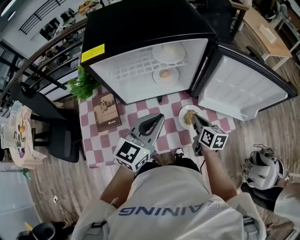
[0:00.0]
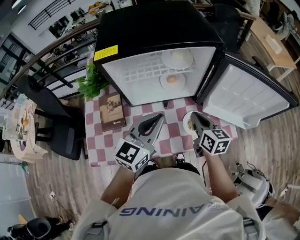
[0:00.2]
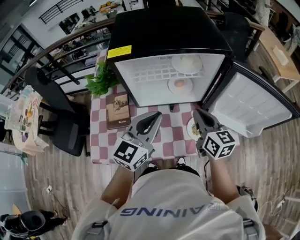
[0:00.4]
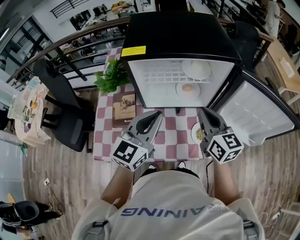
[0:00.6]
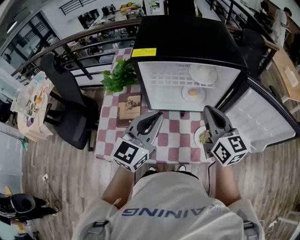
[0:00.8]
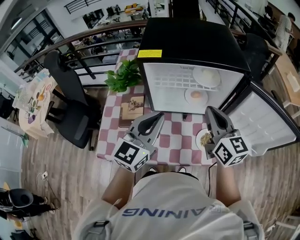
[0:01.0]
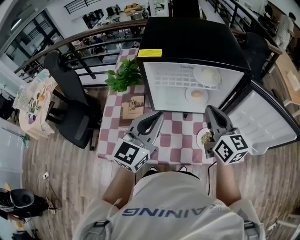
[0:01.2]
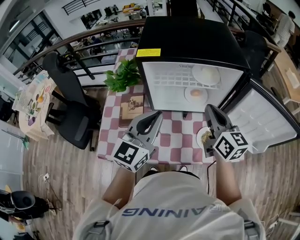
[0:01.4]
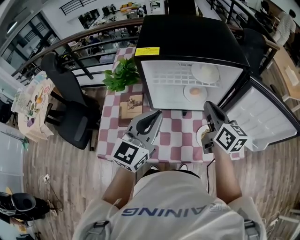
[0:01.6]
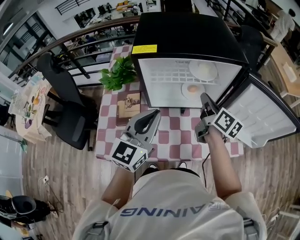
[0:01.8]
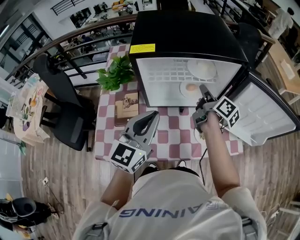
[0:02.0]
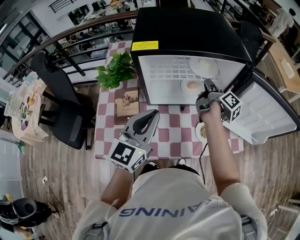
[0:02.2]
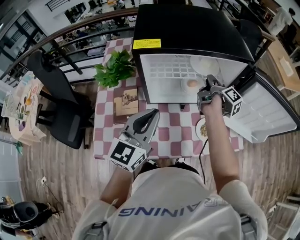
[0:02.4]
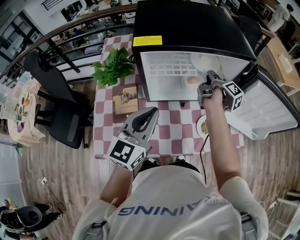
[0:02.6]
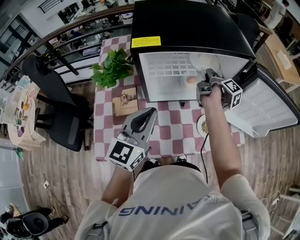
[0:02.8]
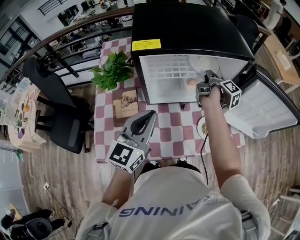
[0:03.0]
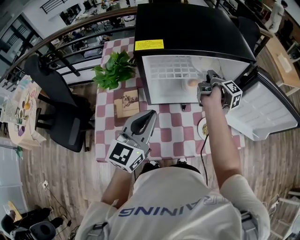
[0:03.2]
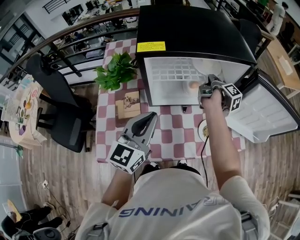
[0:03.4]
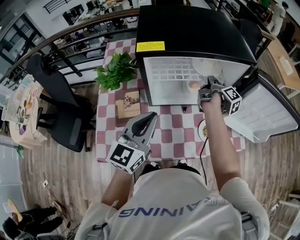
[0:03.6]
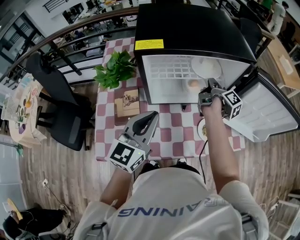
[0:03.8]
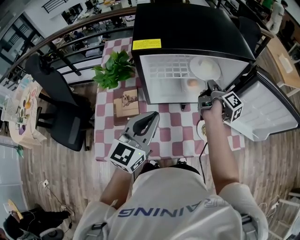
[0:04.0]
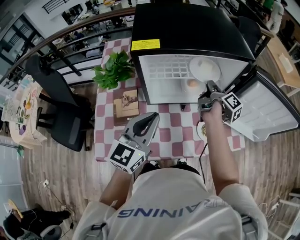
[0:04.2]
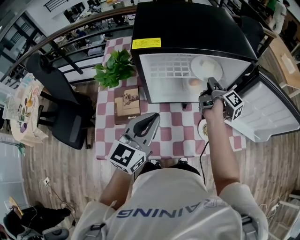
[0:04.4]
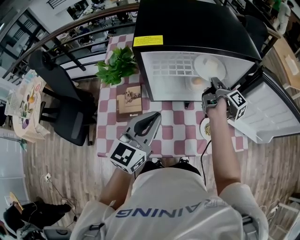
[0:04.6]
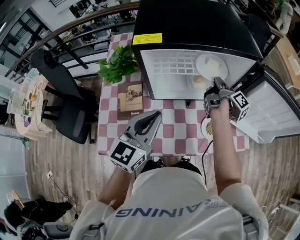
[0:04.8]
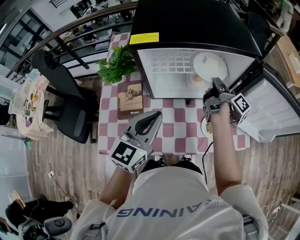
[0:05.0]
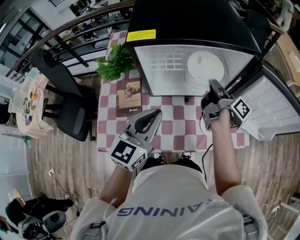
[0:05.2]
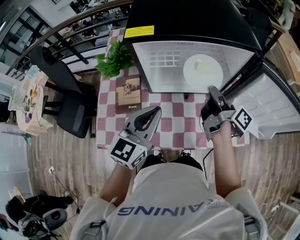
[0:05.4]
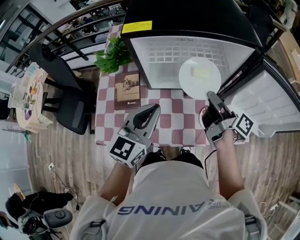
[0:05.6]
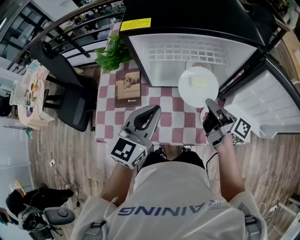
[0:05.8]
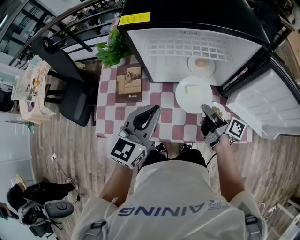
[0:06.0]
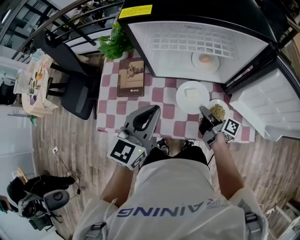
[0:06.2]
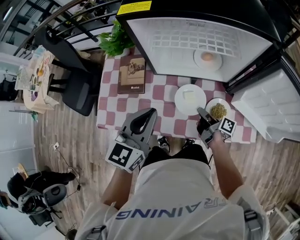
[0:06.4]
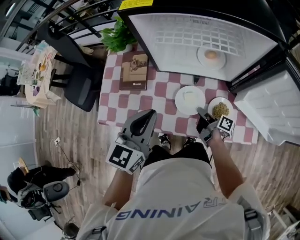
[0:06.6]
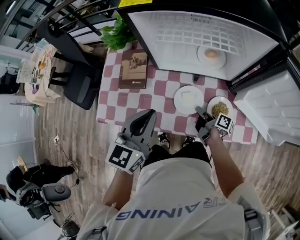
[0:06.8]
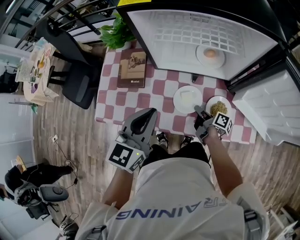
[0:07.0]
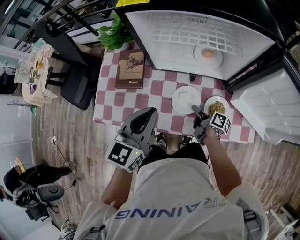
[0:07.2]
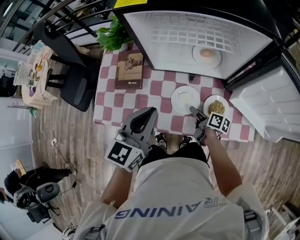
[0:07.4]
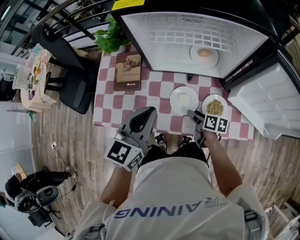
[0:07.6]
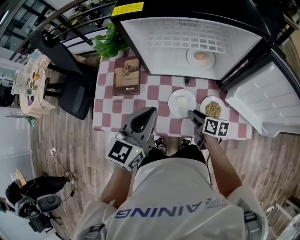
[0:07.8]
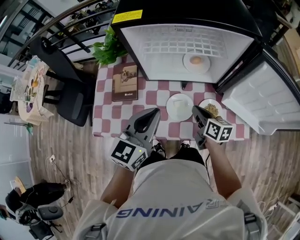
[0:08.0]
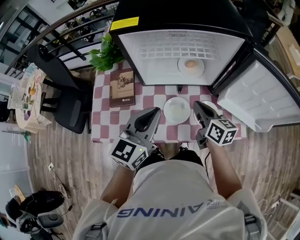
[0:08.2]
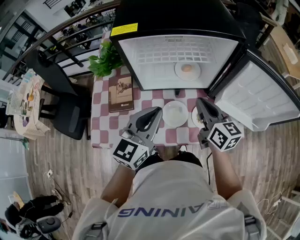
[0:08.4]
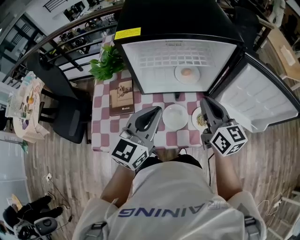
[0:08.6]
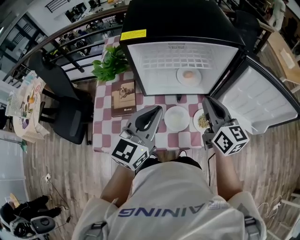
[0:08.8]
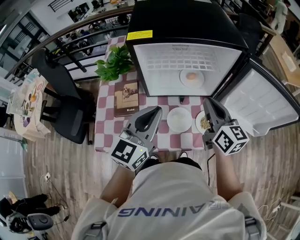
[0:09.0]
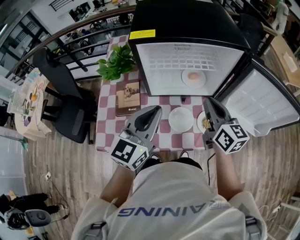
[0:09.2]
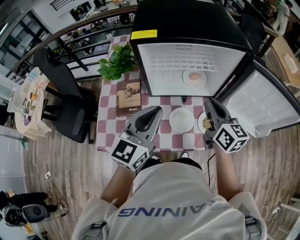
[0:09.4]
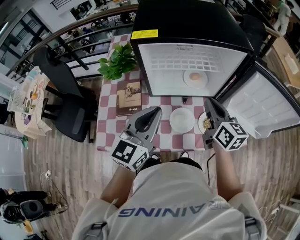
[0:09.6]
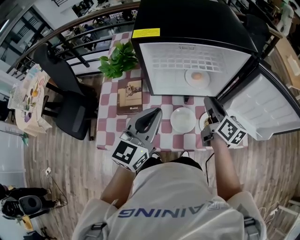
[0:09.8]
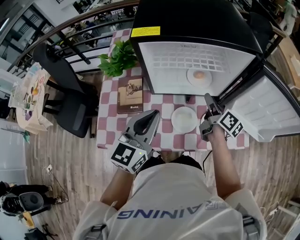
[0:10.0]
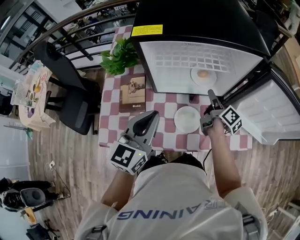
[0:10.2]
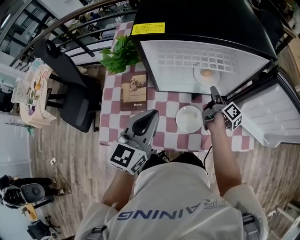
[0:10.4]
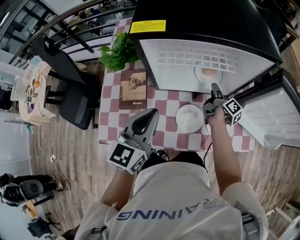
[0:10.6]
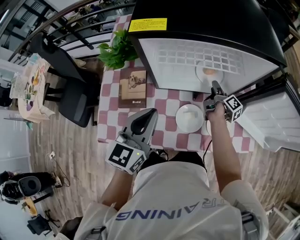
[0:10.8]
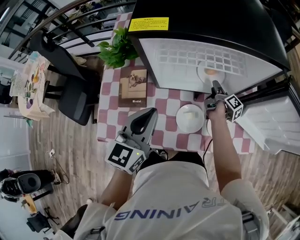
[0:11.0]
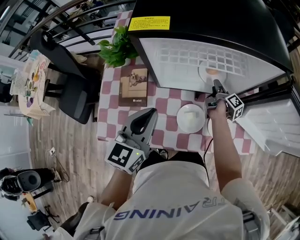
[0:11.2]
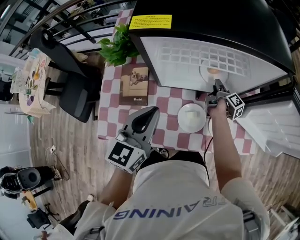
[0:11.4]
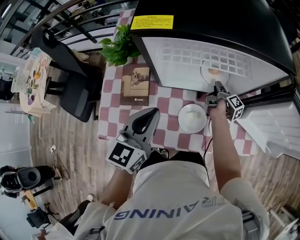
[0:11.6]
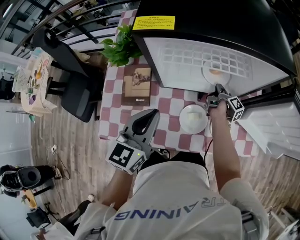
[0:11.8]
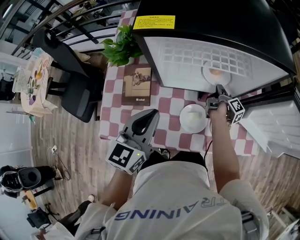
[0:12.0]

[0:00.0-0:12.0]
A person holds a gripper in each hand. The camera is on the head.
0:00.0 to 0:01.6: The right gripper shifts some 20 cm upward and to the left, and rotates roughly 30 degrees, while the left gripper travels to the left and upward by approximately 15 cm, and turns by about 20 degrees.
0:01.6 to 0:03.0: The left gripper moves about 5 cm. The right gripper goes about 20 cm forward and downward, and rolls clockwise, seen from behind, by about 60 degrees.
0:03.0 to 0:04.4: The grippers make only small movements.
0:04.4 to 0:06.0: The right gripper is displaced backward and downward by approximately 20 cm, and rotates some 40 degrees.
0:06.0 to 0:07.6: The right gripper is displaced downward by some 15 cm, turns by roughly 40 degrees, and opens.
0:07.6 to 0:09.0: The right gripper is displaced upward by some 30 cm, swivels about 50 degrees, and closes. Meanwhile the left gripper travels upward by approximately 10 cm.
0:09.0 to 0:10.4: The right gripper shifts roughly 25 cm downward and forward, twists approximately 60 degrees clockwise, seen from behind, and opens up; the left gripper shifts by approximately 5 cm.
0:10.4 to 0:12.0: The right gripper moves downward, roughly 10 cm, and closes.

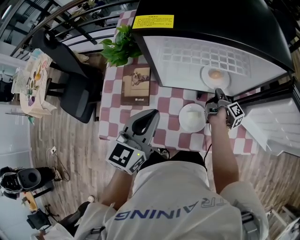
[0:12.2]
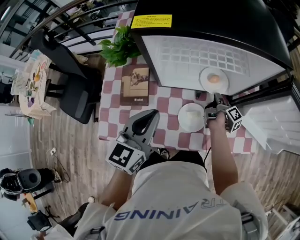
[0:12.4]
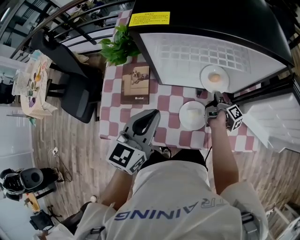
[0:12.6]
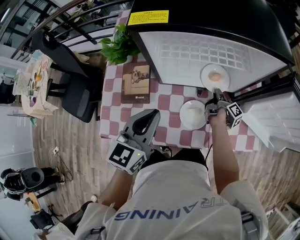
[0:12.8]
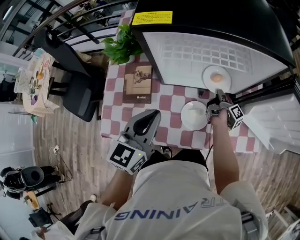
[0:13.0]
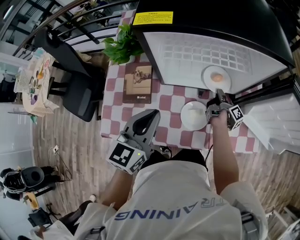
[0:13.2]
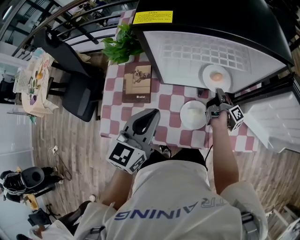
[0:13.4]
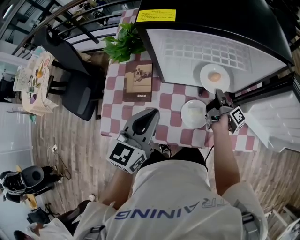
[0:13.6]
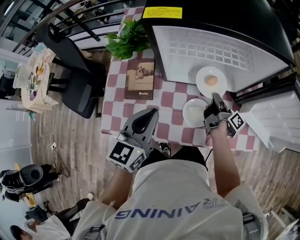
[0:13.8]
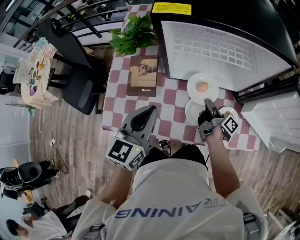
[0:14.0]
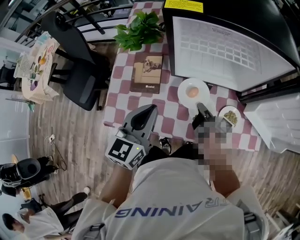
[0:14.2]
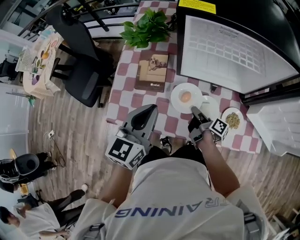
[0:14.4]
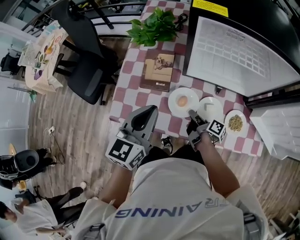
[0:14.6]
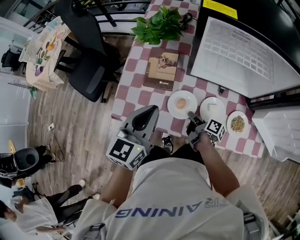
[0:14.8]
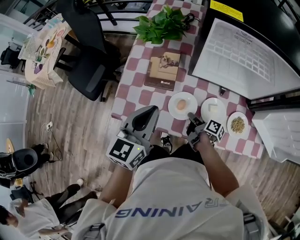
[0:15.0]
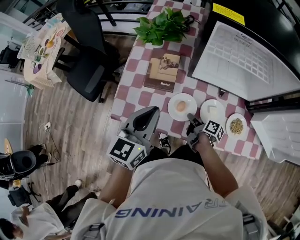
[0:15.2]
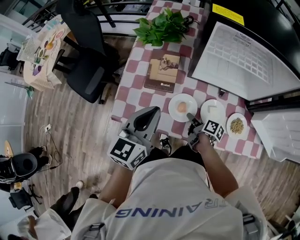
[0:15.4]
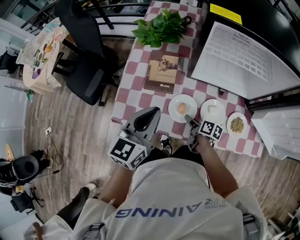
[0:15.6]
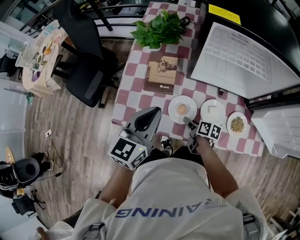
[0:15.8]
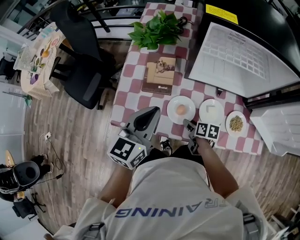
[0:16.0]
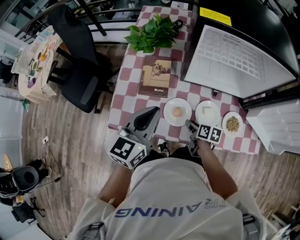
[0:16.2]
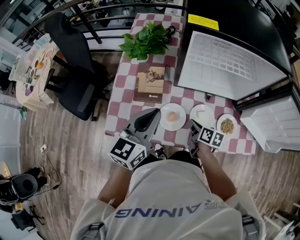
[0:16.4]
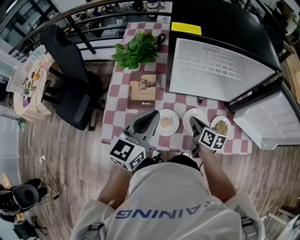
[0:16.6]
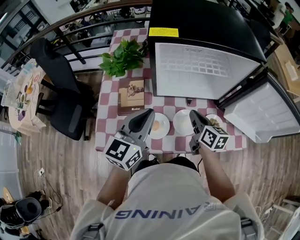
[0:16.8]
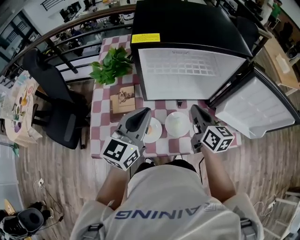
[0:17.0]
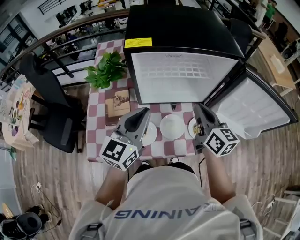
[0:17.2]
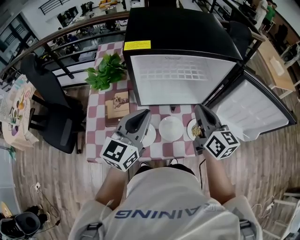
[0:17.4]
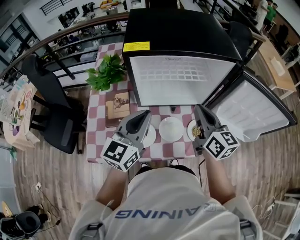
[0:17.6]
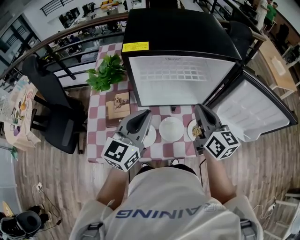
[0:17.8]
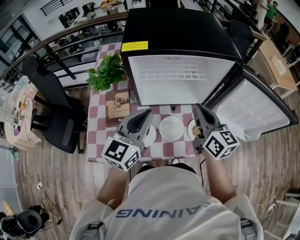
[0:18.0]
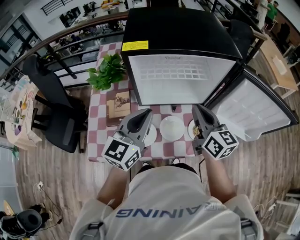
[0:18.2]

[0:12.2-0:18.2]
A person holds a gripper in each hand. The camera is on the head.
0:12.2 to 0:13.8: The right gripper heads backward, covering roughly 5 cm.
0:13.8 to 0:15.2: The right gripper goes roughly 25 cm to the left, backward and downward, and turns by some 40 degrees, while the left gripper moves to the left, about 10 cm.
0:15.2 to 0:16.6: The left gripper shifts roughly 5 cm to the right; the right gripper shifts about 15 cm upward and to the right, swivels roughly 40 degrees, and opens and closes again.
0:16.6 to 0:18.2: The left gripper is displaced to the right by approximately 10 cm. Meanwhile the right gripper goes roughly 25 cm upward and to the right, and turns by approximately 30 degrees.

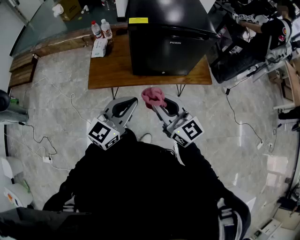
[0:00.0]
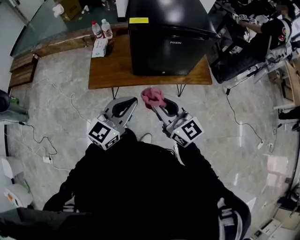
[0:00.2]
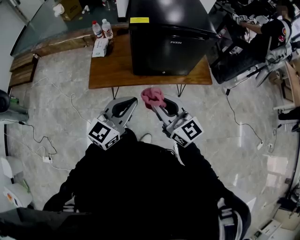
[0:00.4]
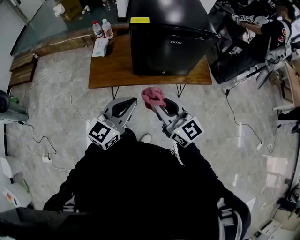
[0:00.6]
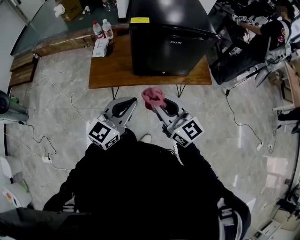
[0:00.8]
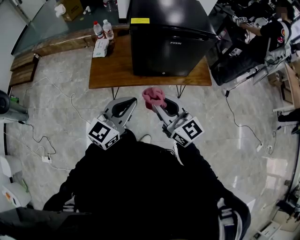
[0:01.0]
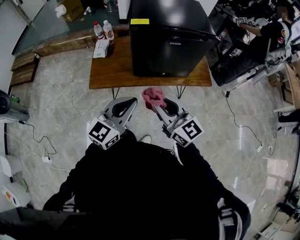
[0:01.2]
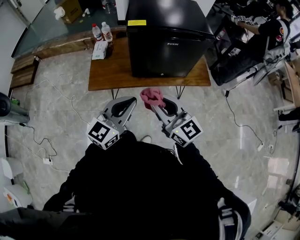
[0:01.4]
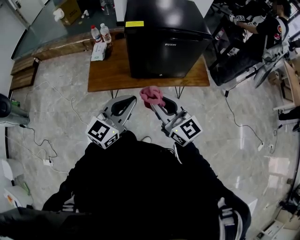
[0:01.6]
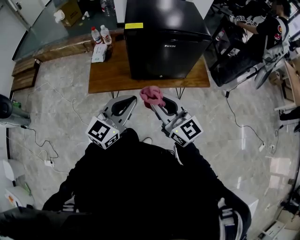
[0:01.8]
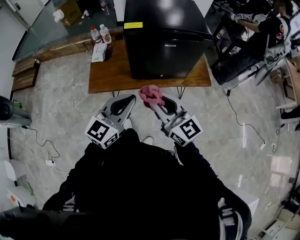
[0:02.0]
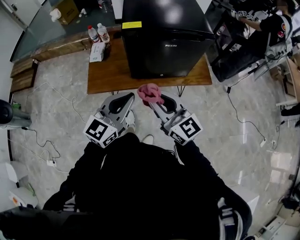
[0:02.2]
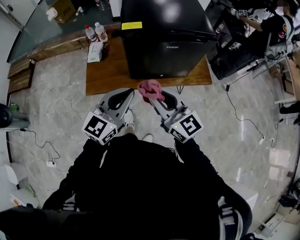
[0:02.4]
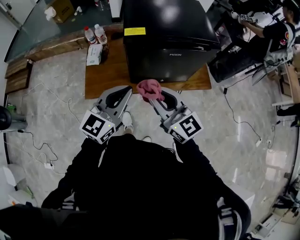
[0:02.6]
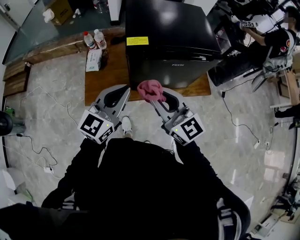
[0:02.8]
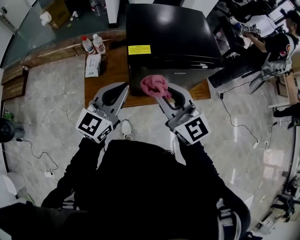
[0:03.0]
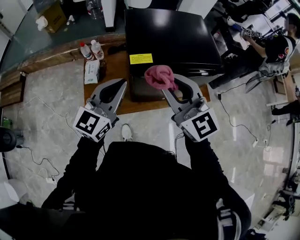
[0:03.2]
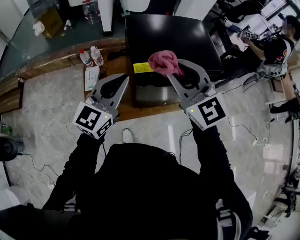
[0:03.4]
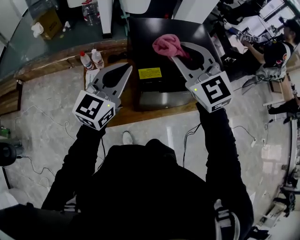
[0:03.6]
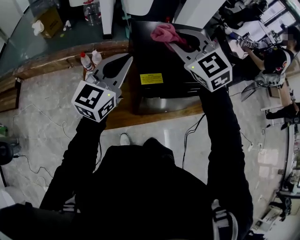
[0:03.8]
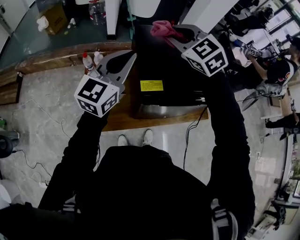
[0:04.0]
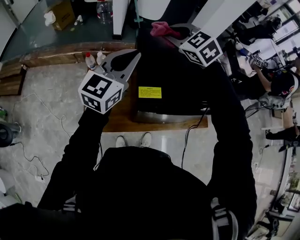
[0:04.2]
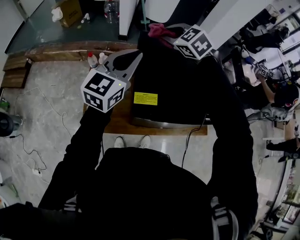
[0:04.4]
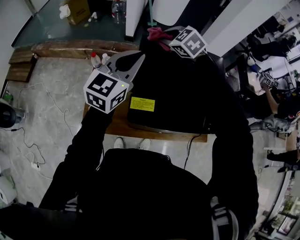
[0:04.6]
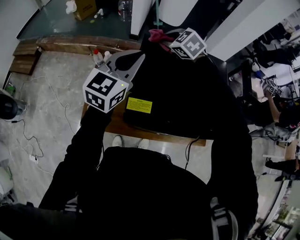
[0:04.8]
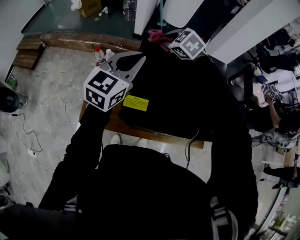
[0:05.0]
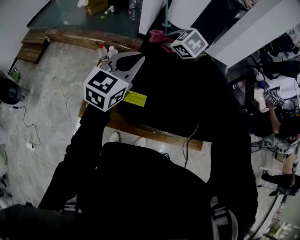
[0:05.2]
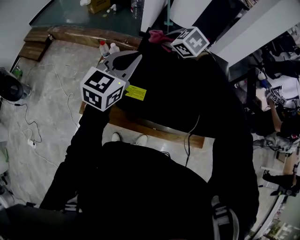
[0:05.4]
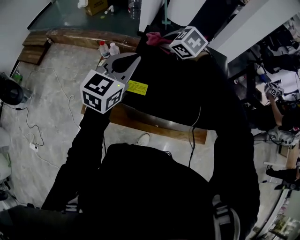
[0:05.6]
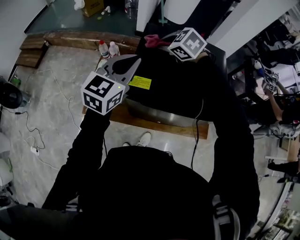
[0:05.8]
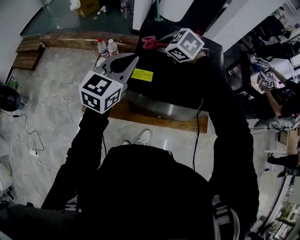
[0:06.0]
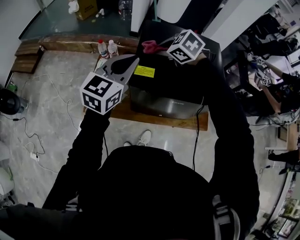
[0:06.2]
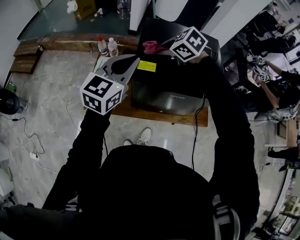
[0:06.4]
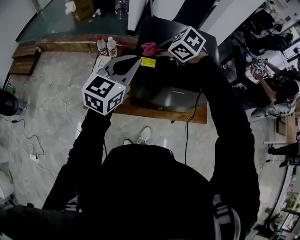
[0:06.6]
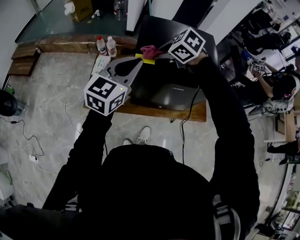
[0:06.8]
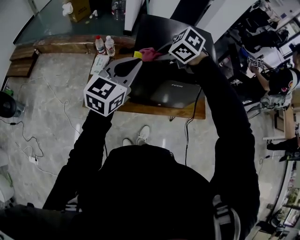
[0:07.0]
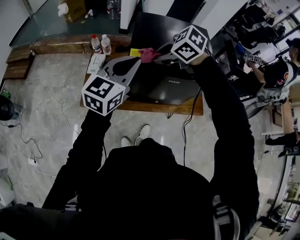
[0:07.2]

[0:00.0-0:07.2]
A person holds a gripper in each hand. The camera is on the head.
0:00.0 to 0:01.4: The grippers make only small movements.
0:01.4 to 0:02.8: The grippers both shift forward by about 15 cm.
0:02.8 to 0:04.4: Both grippers move forward, some 40 cm. The right gripper angles its fingers downward, by approximately 40 degrees.
0:04.4 to 0:05.8: The right gripper travels backward and downward by approximately 10 cm; the left gripper moves backward, approximately 10 cm.
0:05.8 to 0:07.2: The two grippers go about 20 cm backward. The right gripper swivels about 20 degrees.
